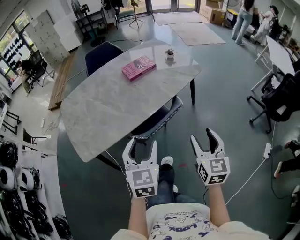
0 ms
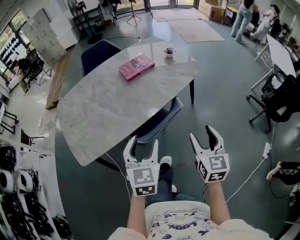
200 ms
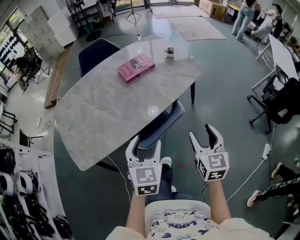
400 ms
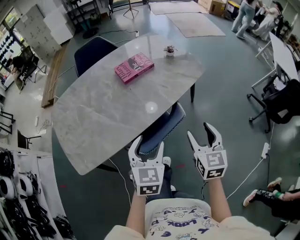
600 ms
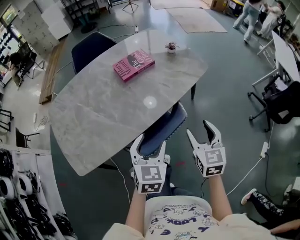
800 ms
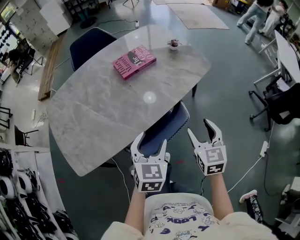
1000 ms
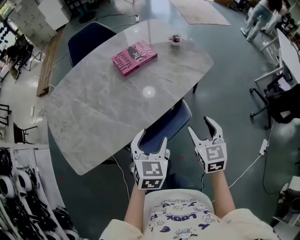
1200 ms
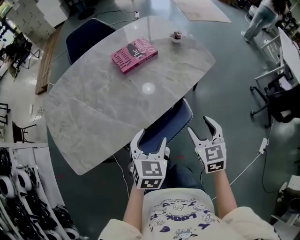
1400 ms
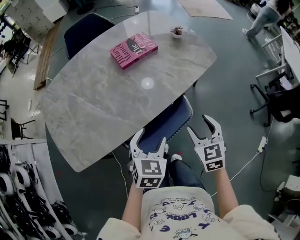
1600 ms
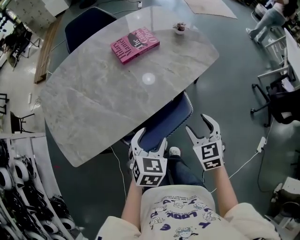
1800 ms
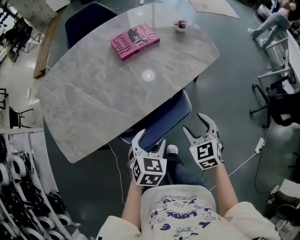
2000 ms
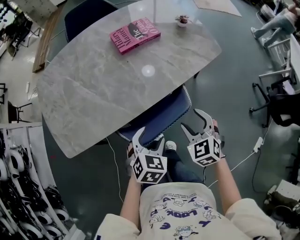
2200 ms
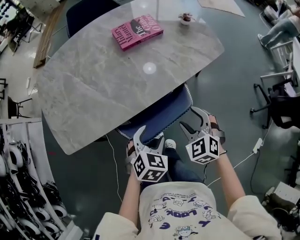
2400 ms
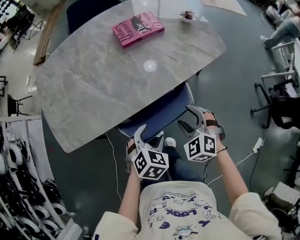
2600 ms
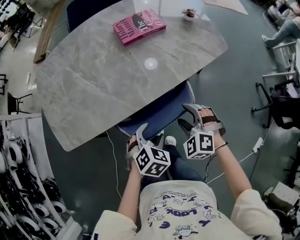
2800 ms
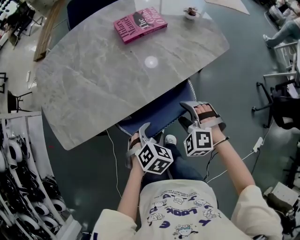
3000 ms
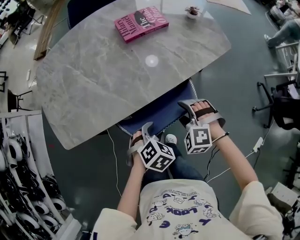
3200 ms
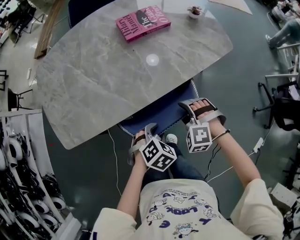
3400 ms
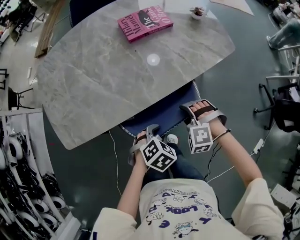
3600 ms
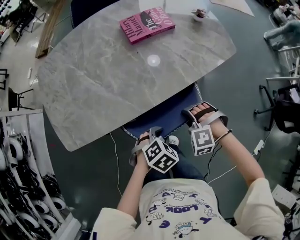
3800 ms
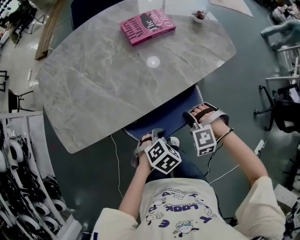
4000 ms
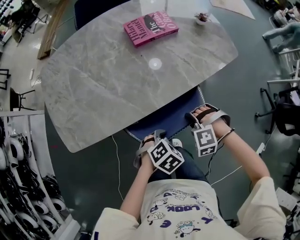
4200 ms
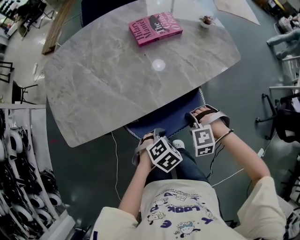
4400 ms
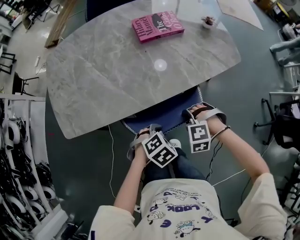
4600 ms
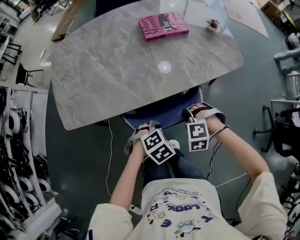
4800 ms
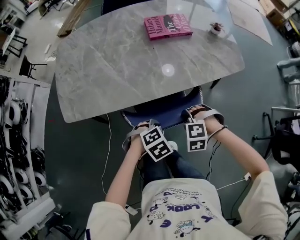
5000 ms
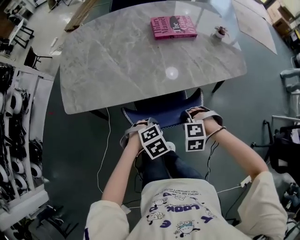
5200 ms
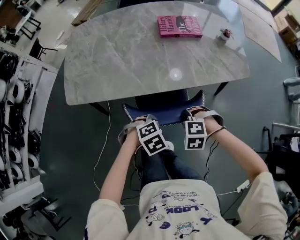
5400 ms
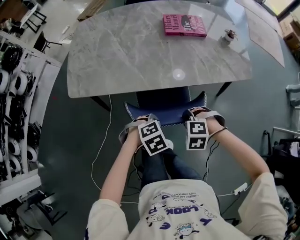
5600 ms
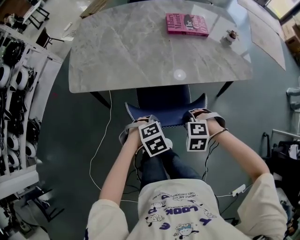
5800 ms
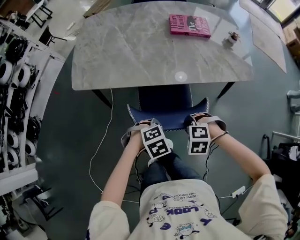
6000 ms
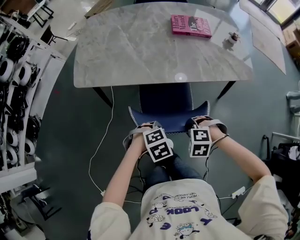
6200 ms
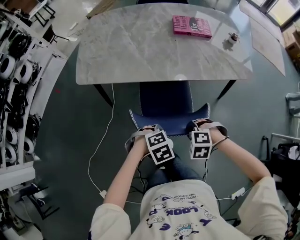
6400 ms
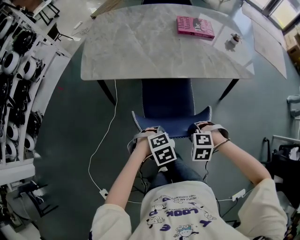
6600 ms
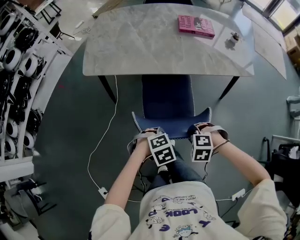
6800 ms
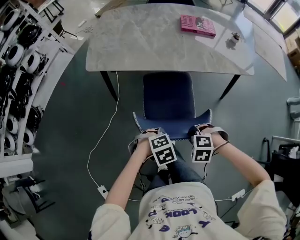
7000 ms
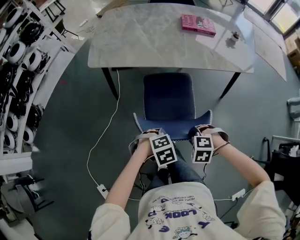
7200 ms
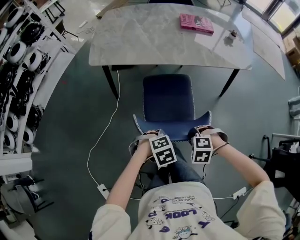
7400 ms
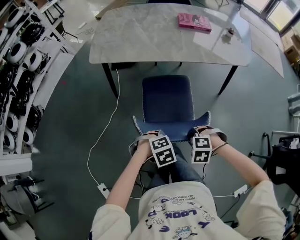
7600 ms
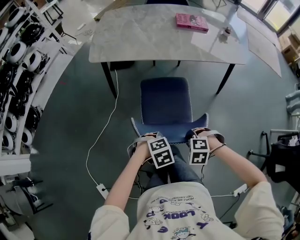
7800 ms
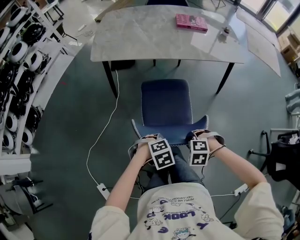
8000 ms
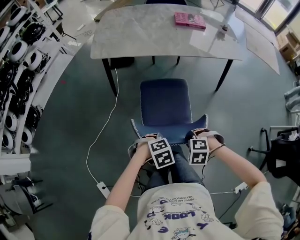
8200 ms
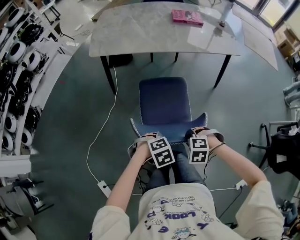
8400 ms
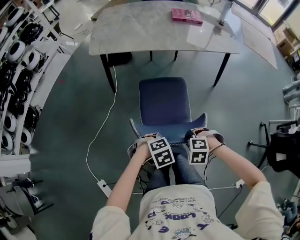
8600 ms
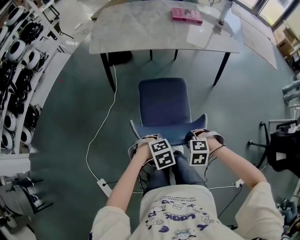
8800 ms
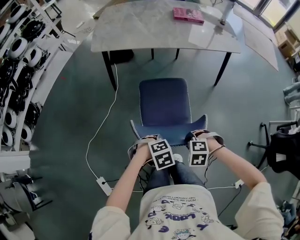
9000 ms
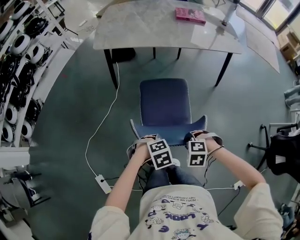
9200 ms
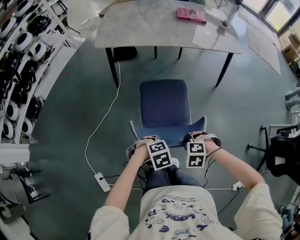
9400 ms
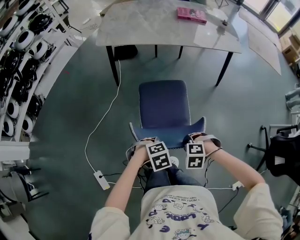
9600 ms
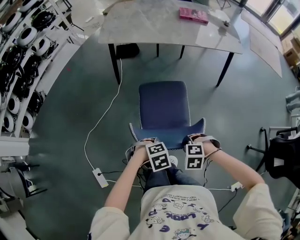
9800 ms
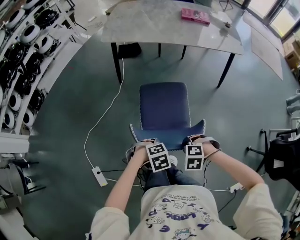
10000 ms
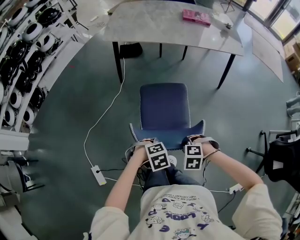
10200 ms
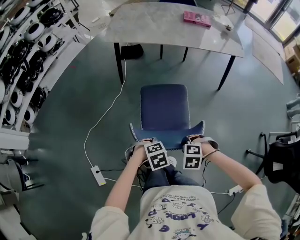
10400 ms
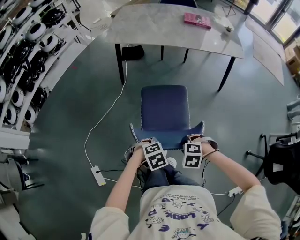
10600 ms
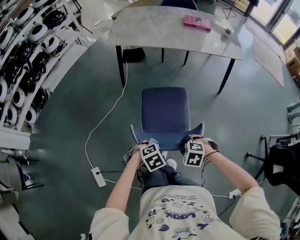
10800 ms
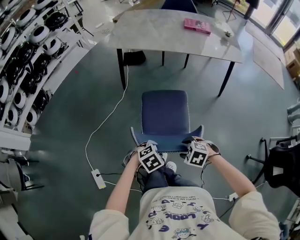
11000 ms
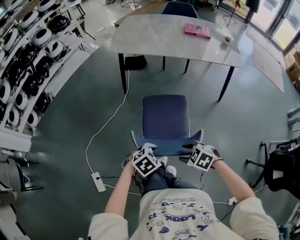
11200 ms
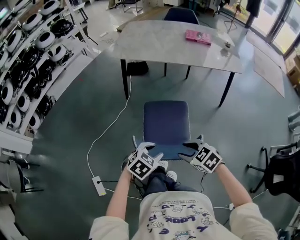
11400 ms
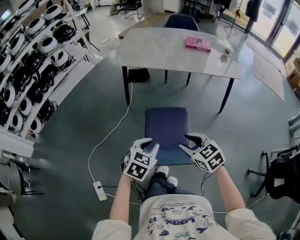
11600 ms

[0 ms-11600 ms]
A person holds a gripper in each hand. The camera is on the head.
0 ms to 1400 ms: Both grippers travel together forward and downward, approximately 20 cm. The left gripper swivels some 20 degrees. Meanwhile the right gripper rotates roughly 20 degrees.
1400 ms to 2800 ms: The right gripper travels downward and to the left by approximately 10 cm, and rotates around the line of its fingers by about 50 degrees, counterclockwise from behind. The left gripper moves downward and backward, approximately 10 cm, and rotates roughly 20 degrees.
2800 ms to 4400 ms: The left gripper closes, while the right gripper is displaced downward by about 5 cm, changes its angle by some 40 degrees, and closes up.
4400 ms to 5800 ms: The right gripper changes place by approximately 10 cm. The left gripper changes place by approximately 10 cm.
5800 ms to 7200 ms: The right gripper shifts by roughly 20 cm, while the left gripper changes place by roughly 20 cm.
7200 ms to 8800 ms: The right gripper changes place by about 20 cm. Meanwhile the left gripper moves approximately 20 cm.
8800 ms to 10200 ms: The left gripper ends up approximately 10 cm from where it was. Meanwhile the right gripper shifts by about 10 cm.
10200 ms to 11600 ms: The grippers both shift upward by some 15 cm. The left gripper tilts its fingers approximately 30 degrees upward, while the right gripper angles its fingers upward, by about 40 degrees.

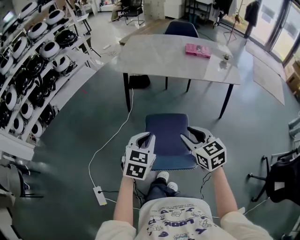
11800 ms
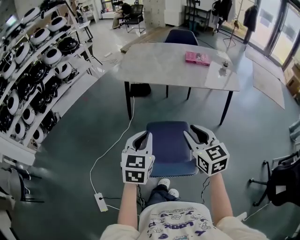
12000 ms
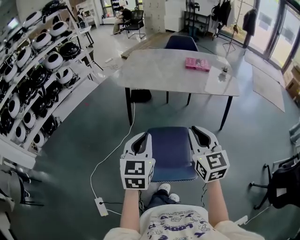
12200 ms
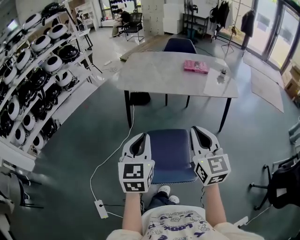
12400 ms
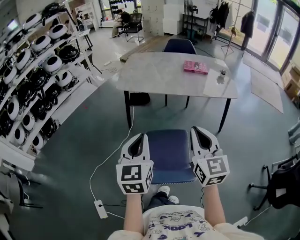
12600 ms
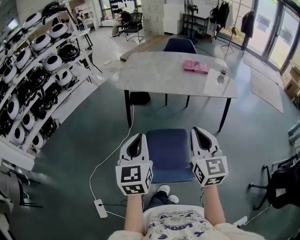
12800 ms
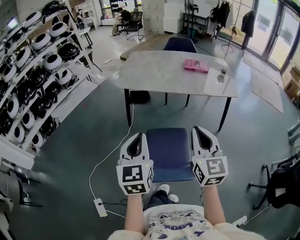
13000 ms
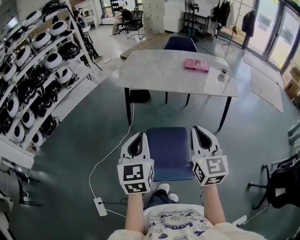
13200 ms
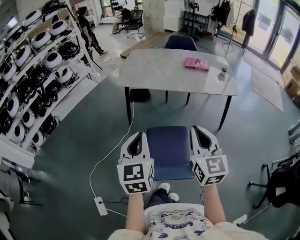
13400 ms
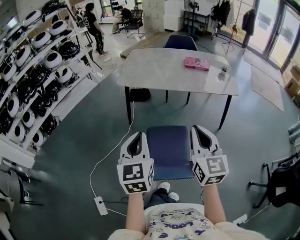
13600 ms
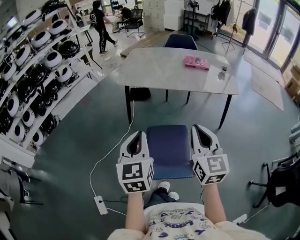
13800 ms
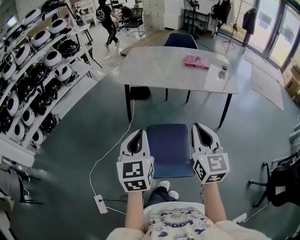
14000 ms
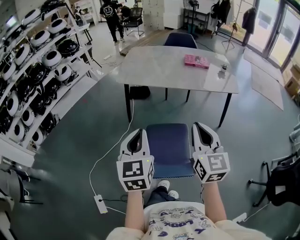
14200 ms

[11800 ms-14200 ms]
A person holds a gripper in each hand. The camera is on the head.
11800 ms to 13000 ms: Both grippers travel together upward, about 15 cm. The left gripper changes its angle by approximately 30 degrees; the right gripper swivels approximately 30 degrees, and closes.
13000 ms to 14200 ms: The two grippers keep their place.

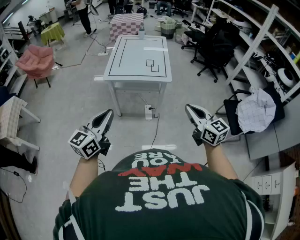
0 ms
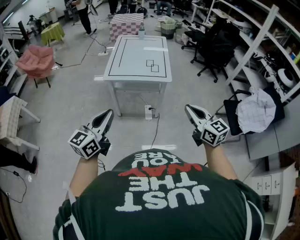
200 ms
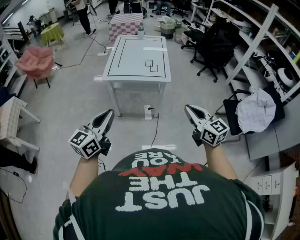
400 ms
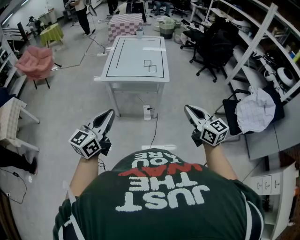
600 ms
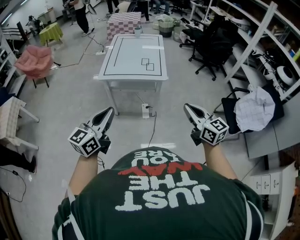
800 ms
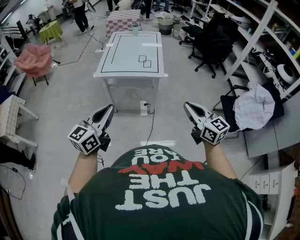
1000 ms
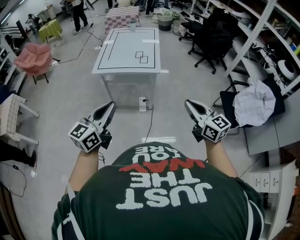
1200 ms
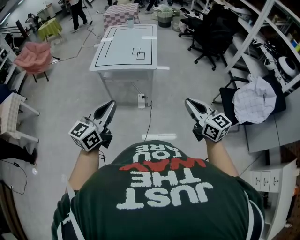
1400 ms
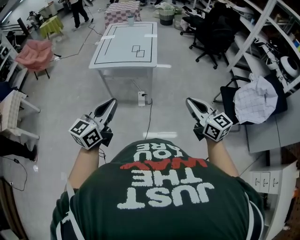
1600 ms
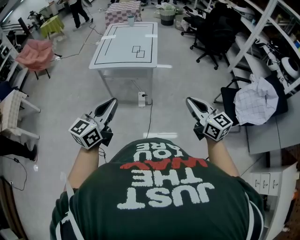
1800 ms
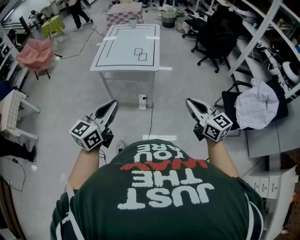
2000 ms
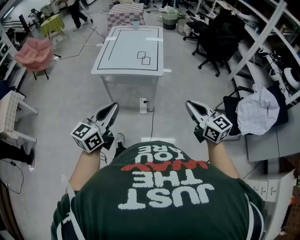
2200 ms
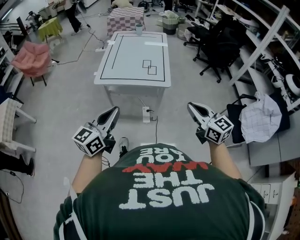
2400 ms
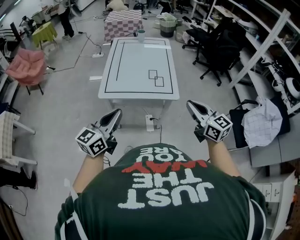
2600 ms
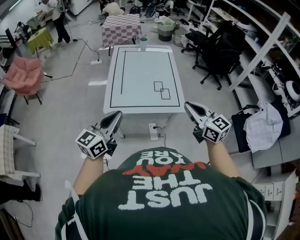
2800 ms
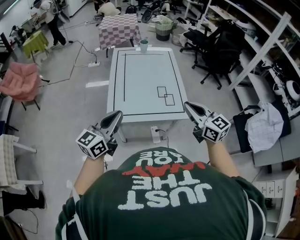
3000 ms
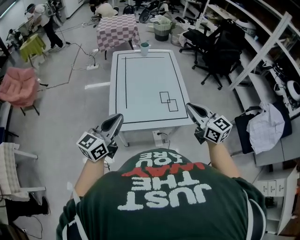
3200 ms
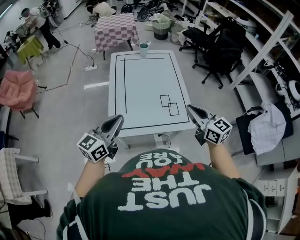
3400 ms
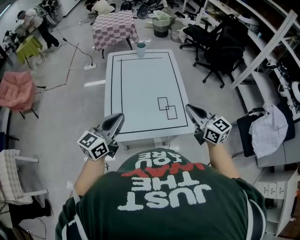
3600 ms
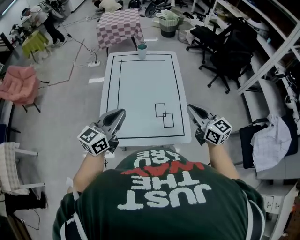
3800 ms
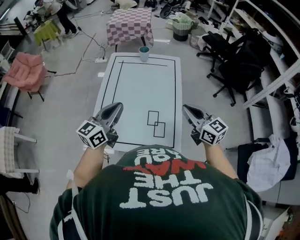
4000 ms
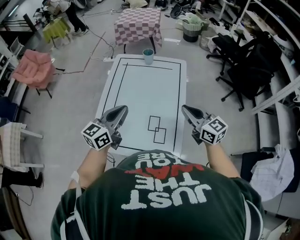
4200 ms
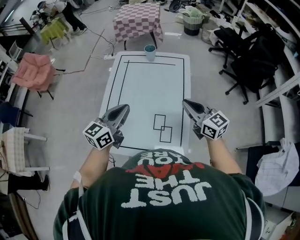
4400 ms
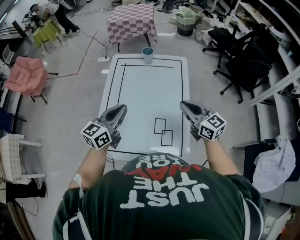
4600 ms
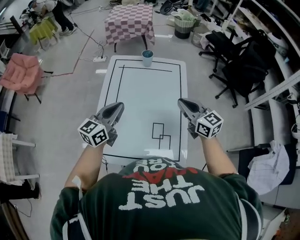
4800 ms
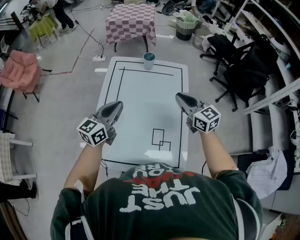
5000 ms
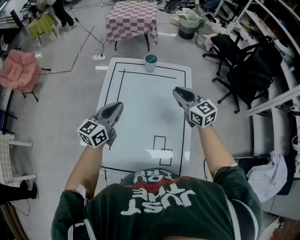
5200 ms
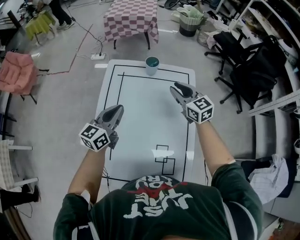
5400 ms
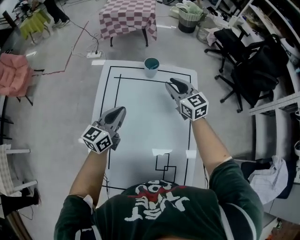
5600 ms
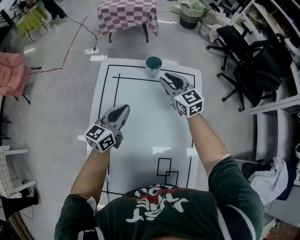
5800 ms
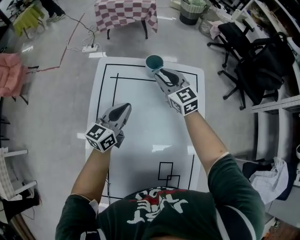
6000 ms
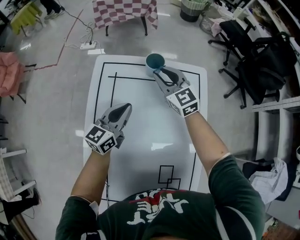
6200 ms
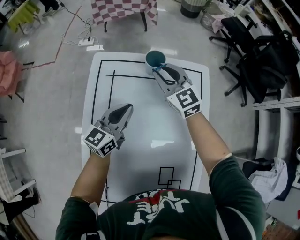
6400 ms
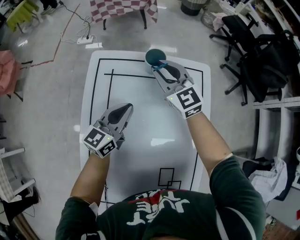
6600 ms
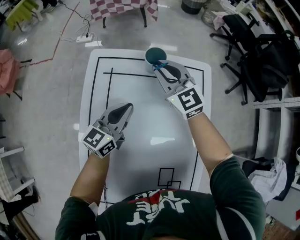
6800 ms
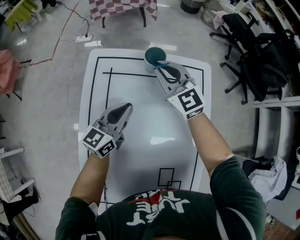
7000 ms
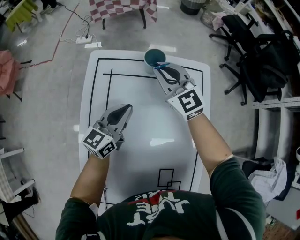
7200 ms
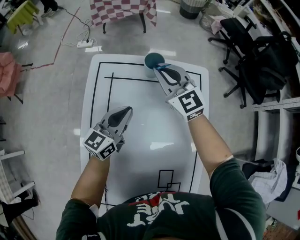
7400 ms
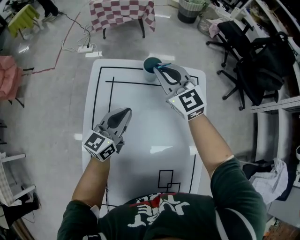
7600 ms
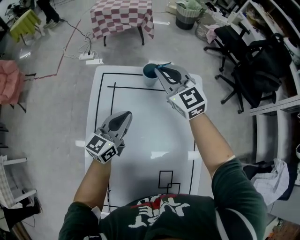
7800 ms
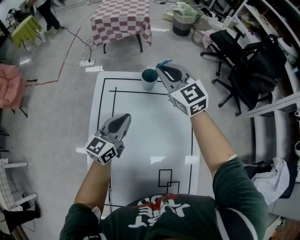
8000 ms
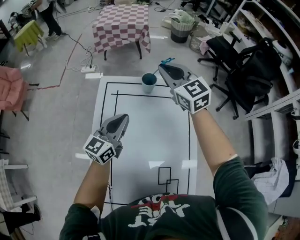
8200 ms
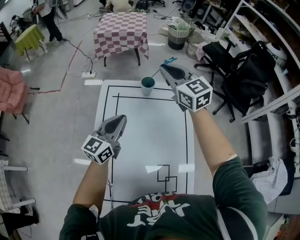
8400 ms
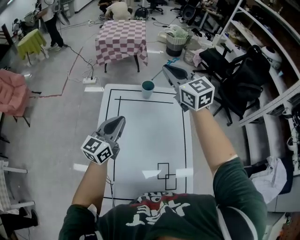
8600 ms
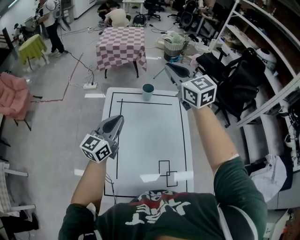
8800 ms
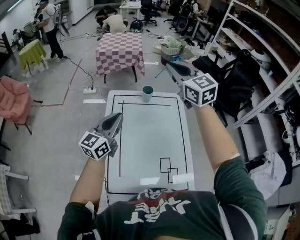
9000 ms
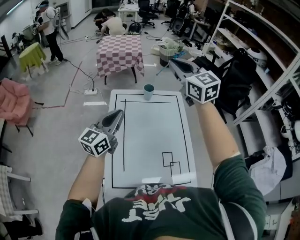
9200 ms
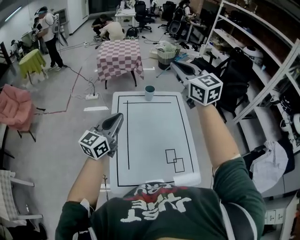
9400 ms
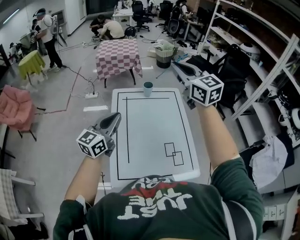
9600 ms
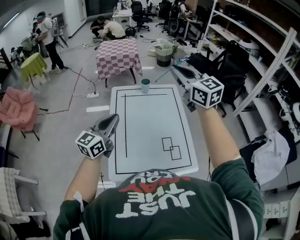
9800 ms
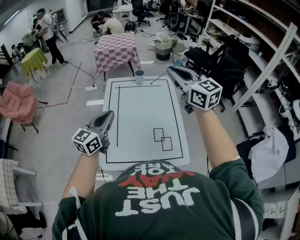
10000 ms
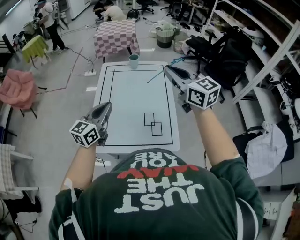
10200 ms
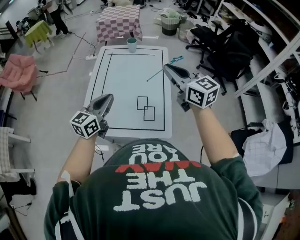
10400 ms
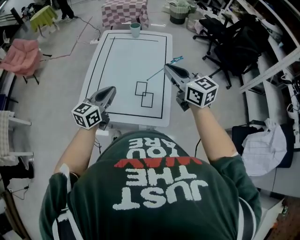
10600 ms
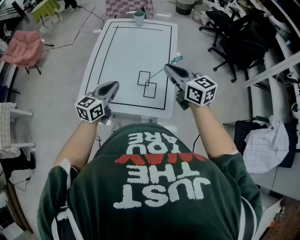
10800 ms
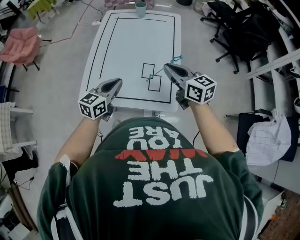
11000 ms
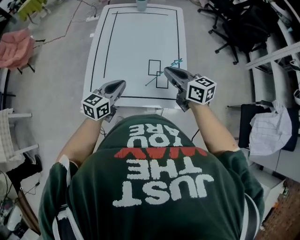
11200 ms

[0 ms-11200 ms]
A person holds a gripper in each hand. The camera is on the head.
0 ms to 1600 ms: Both grippers move to the right, some 20 cm.
1600 ms to 3200 ms: The pair of grippers is taken forward and to the left, some 60 cm.
3200 ms to 4800 ms: The left gripper travels forward and to the right by some 35 cm; the right gripper heads forward, covering approximately 35 cm.
4800 ms to 6400 ms: The left gripper goes roughly 35 cm forward and downward; the right gripper goes approximately 40 cm forward, and rotates some 20 degrees.
6400 ms to 8000 ms: The right gripper shifts approximately 15 cm upward. The left gripper travels upward by roughly 5 cm.
8000 ms to 9600 ms: The left gripper shifts roughly 35 cm backward, upward and to the left; the right gripper moves backward and upward, approximately 40 cm.
9600 ms to 11200 ms: The right gripper heads downward and backward, covering approximately 40 cm, and turns by about 40 degrees. Meanwhile the left gripper is displaced downward, backward and to the right by roughly 35 cm, and rotates roughly 30 degrees.
